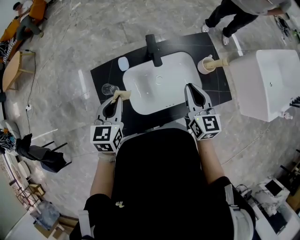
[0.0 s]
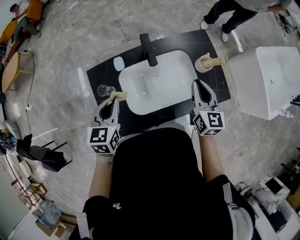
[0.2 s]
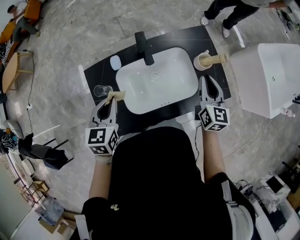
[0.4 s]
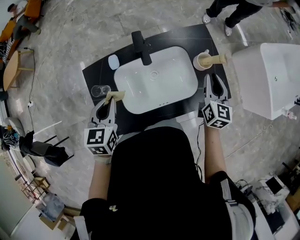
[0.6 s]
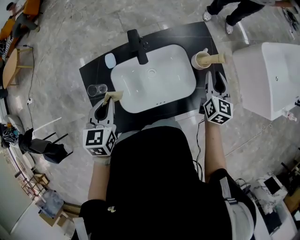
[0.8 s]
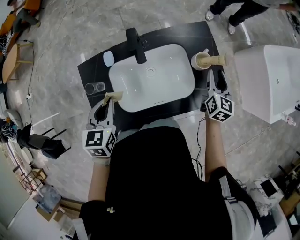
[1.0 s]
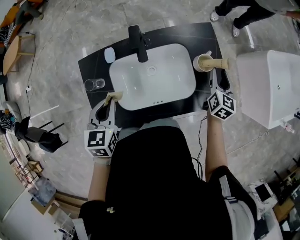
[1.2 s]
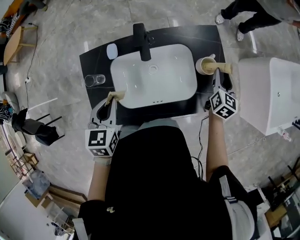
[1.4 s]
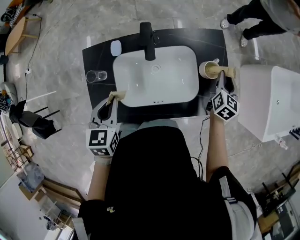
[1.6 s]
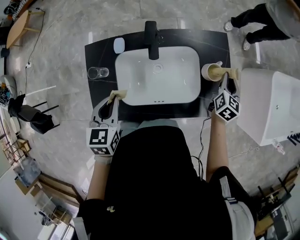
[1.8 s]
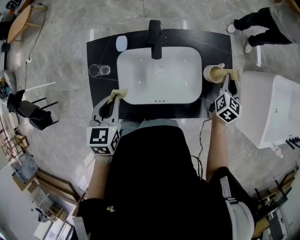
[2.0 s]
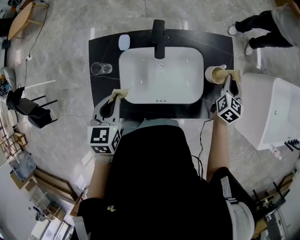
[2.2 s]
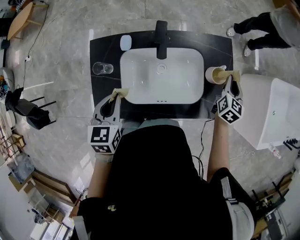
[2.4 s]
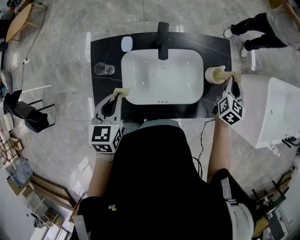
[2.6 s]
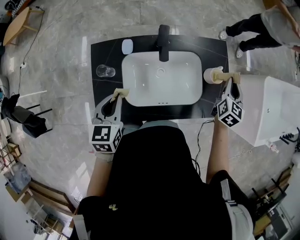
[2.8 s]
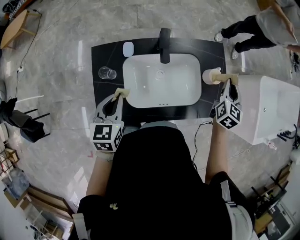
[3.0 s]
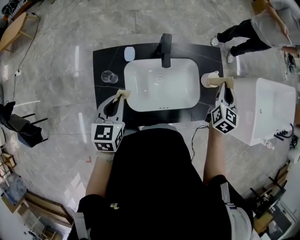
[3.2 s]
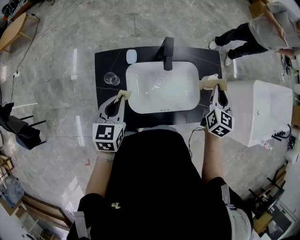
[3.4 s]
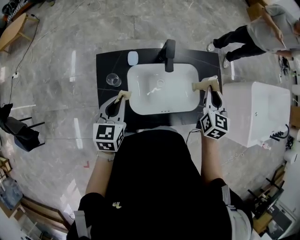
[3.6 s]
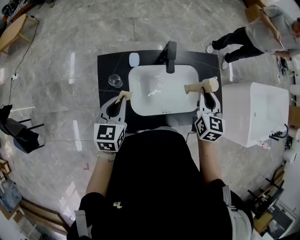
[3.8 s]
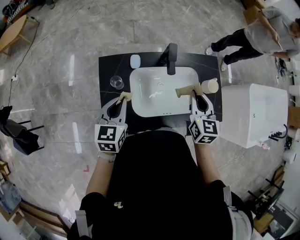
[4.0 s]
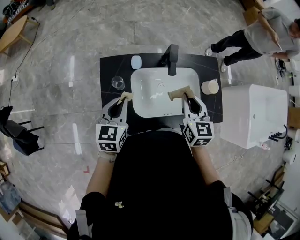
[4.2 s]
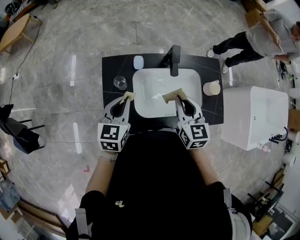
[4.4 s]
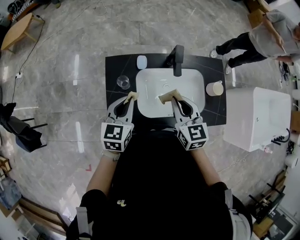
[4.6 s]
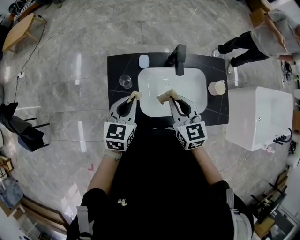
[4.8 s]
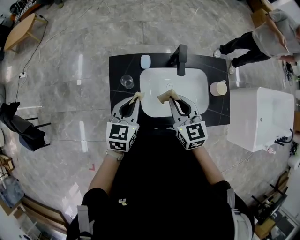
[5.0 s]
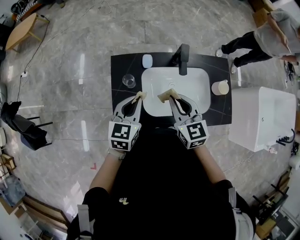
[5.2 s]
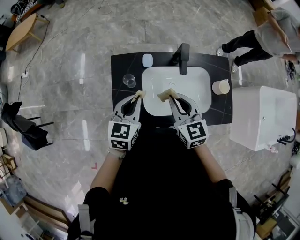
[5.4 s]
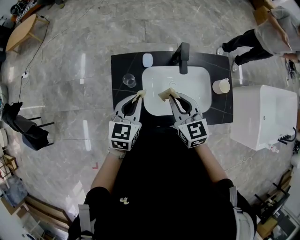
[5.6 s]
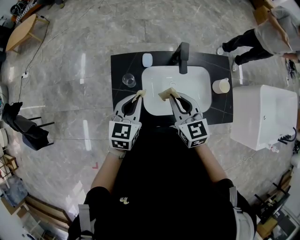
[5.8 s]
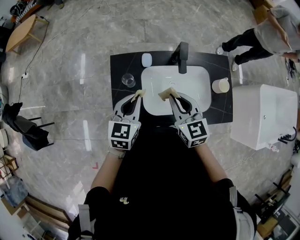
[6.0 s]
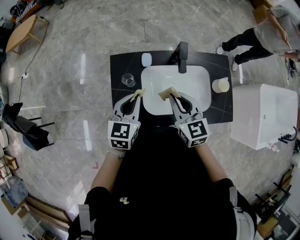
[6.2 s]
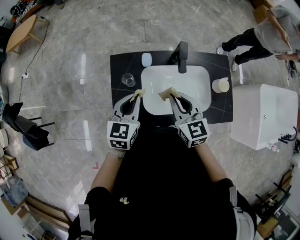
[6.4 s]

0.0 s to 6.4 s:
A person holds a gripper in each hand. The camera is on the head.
0.0 to 1.6 s: The right gripper goes some 30 cm to the right, forward and downward, and swivels some 20 degrees; the left gripper moves to the right, about 5 cm.
1.6 to 3.2 s: The left gripper heads to the left, covering some 5 cm. The right gripper is displaced upward and to the left by some 15 cm.
3.2 to 4.8 s: The right gripper goes roughly 30 cm to the left, and changes its angle by approximately 40 degrees.
4.8 to 6.4 s: The grippers move only a little.

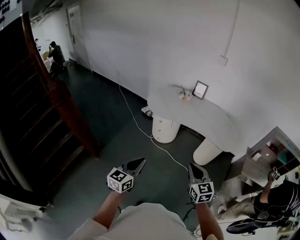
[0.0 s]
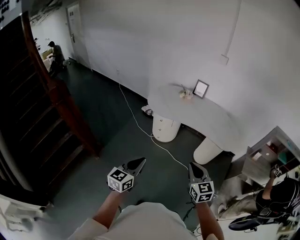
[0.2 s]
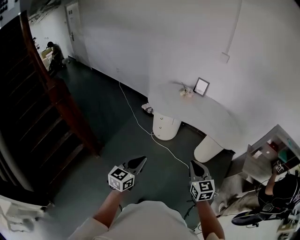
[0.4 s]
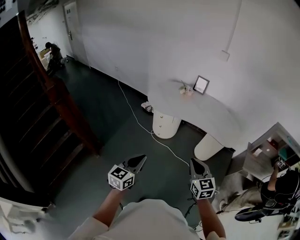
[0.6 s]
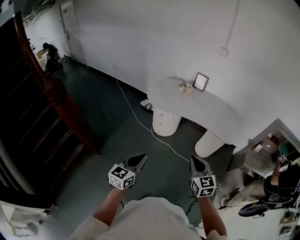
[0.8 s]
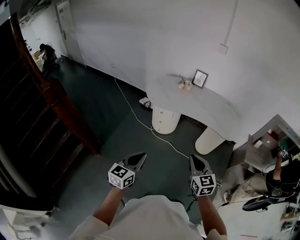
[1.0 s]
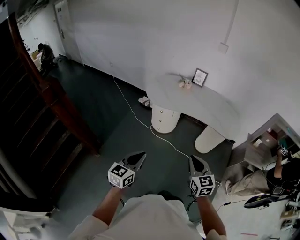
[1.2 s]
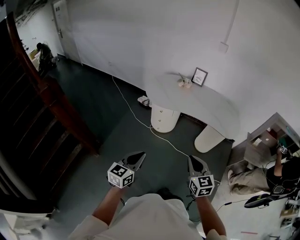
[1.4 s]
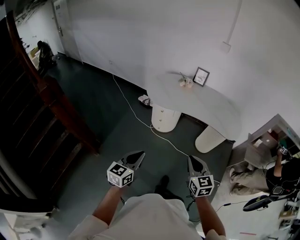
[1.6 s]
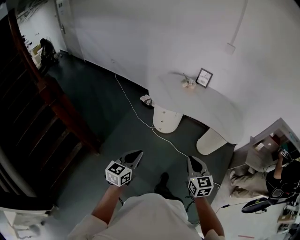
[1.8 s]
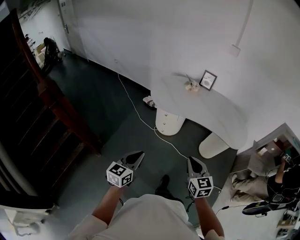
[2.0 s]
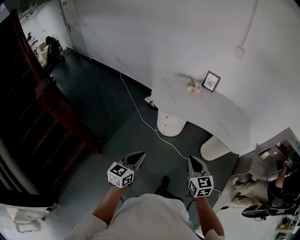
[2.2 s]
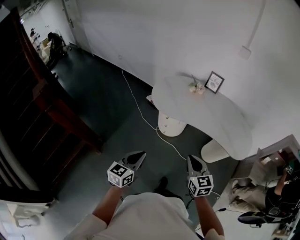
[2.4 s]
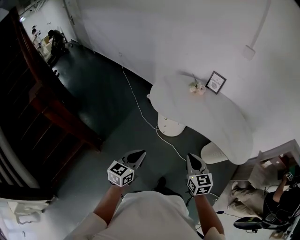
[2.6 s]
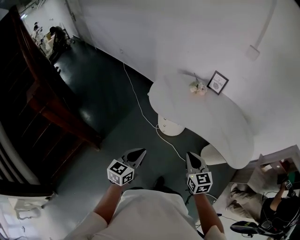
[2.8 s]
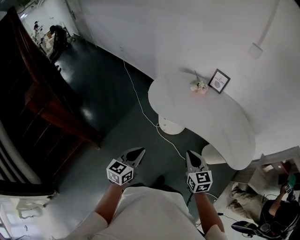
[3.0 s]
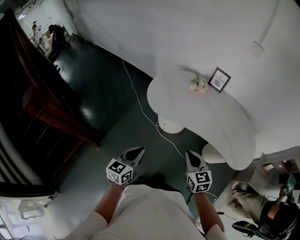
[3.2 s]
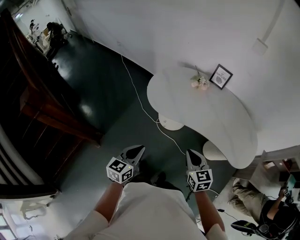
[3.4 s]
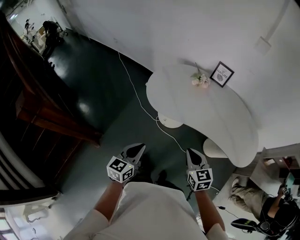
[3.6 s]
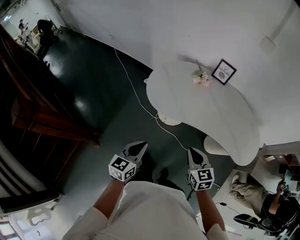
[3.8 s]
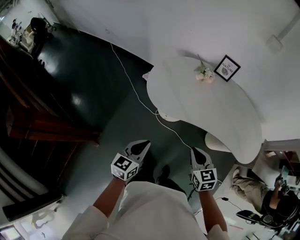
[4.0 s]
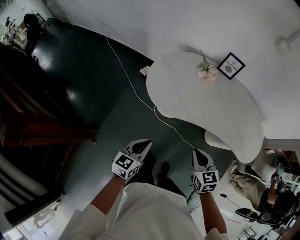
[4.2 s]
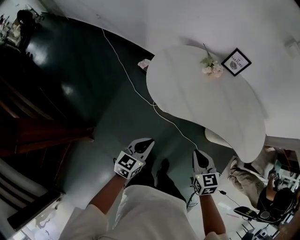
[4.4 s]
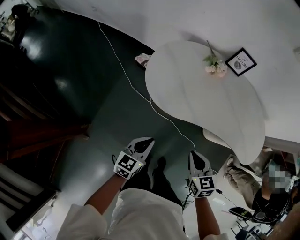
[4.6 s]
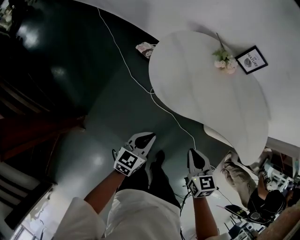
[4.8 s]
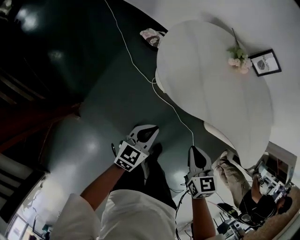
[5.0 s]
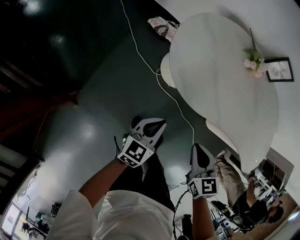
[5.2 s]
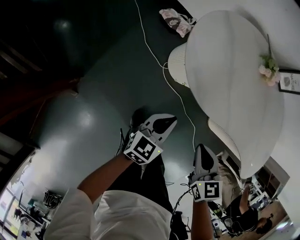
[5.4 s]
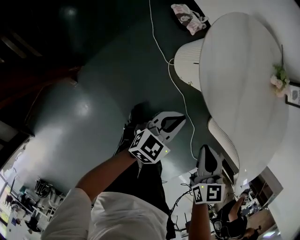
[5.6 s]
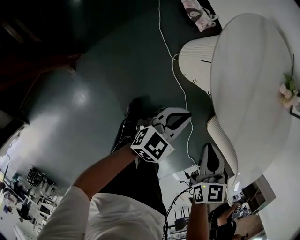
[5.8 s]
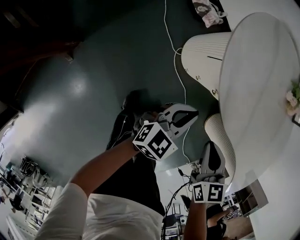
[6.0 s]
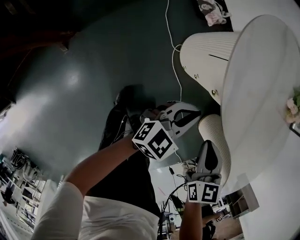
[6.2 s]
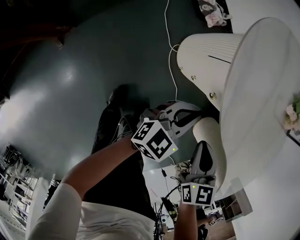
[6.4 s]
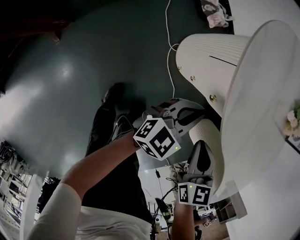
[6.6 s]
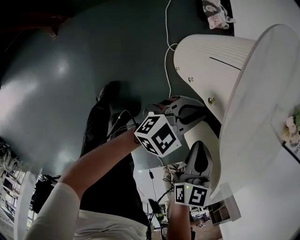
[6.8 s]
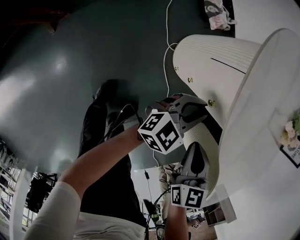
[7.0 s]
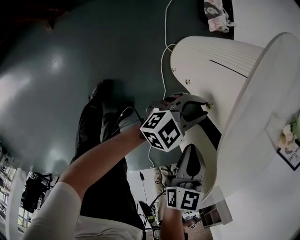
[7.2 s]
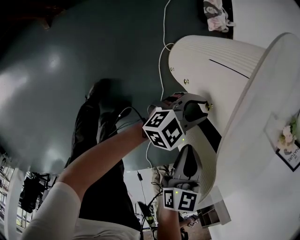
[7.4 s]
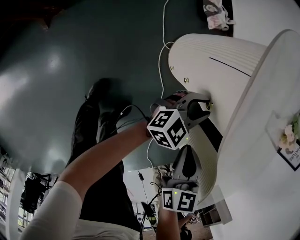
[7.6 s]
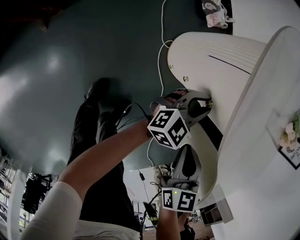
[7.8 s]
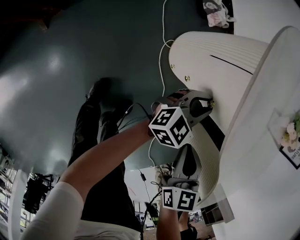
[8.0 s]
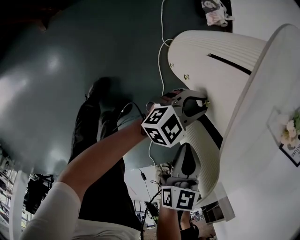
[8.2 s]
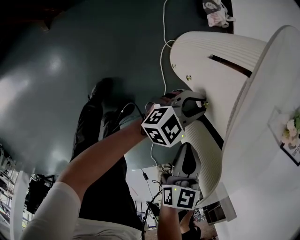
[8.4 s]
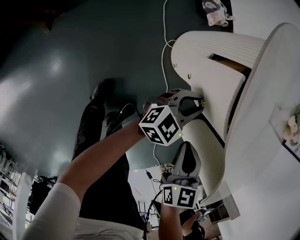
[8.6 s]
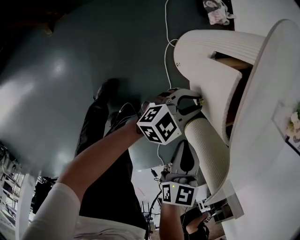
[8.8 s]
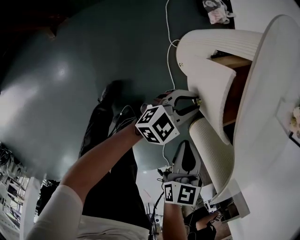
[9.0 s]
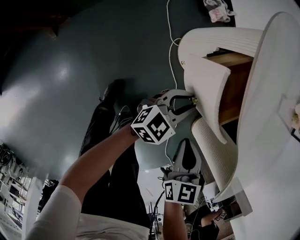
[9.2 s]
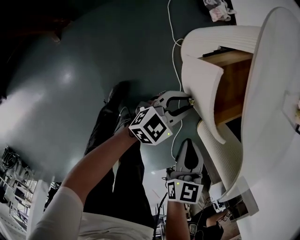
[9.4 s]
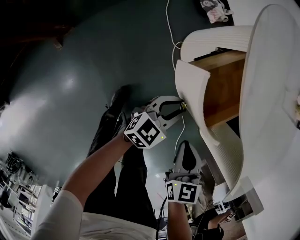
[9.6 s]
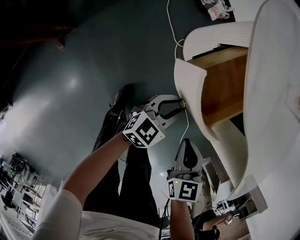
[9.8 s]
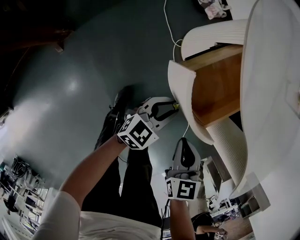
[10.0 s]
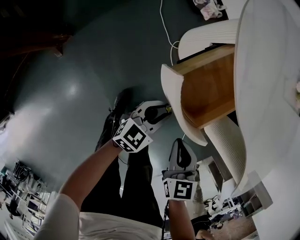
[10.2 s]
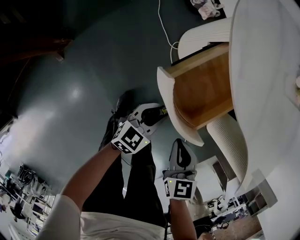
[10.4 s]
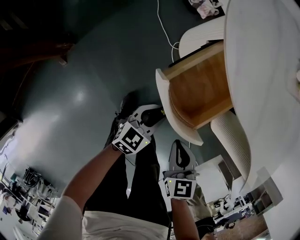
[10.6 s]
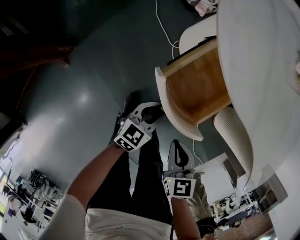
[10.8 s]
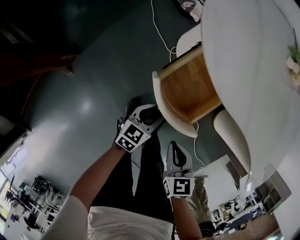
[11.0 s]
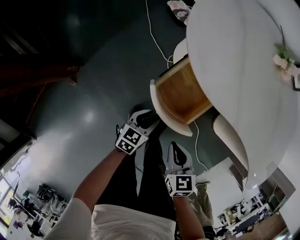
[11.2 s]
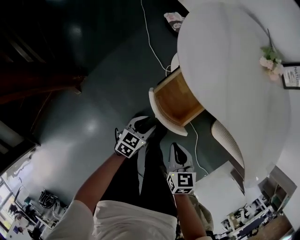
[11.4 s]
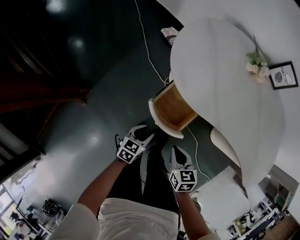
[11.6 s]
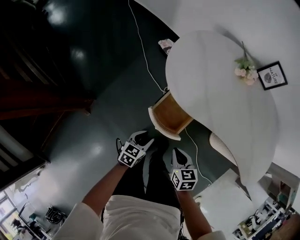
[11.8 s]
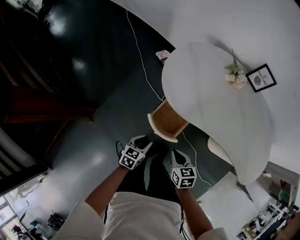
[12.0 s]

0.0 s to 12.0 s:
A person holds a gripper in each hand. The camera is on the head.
0.0 to 1.6 s: The two grippers go some 10 cm to the left.
1.6 to 3.0 s: Both grippers move forward, some 30 cm.
3.0 to 4.4 s: The left gripper travels forward and downward by approximately 25 cm. The right gripper heads forward, downward and to the left, covering some 20 cm, and swivels some 20 degrees.
4.4 to 6.0 s: The right gripper goes some 25 cm downward and to the left. The left gripper is displaced downward by about 30 cm.
6.0 to 7.6 s: The right gripper heads downward, covering some 10 cm. Meanwhile the left gripper shifts some 20 cm downward, to the right and forward, and opens.
7.6 to 9.0 s: The grippers both shift backward by roughly 5 cm.
9.0 to 10.4 s: The left gripper travels backward and to the left by approximately 15 cm; the right gripper moves backward, some 5 cm.
10.4 to 12.0 s: Both grippers move upward, about 20 cm. The right gripper swivels approximately 20 degrees.

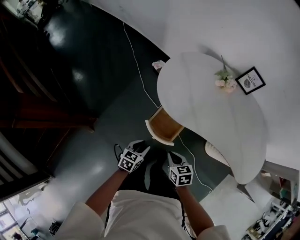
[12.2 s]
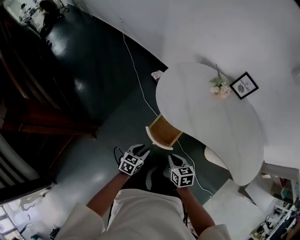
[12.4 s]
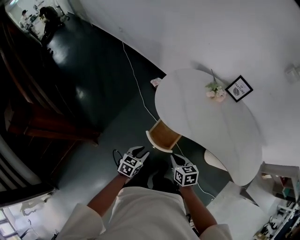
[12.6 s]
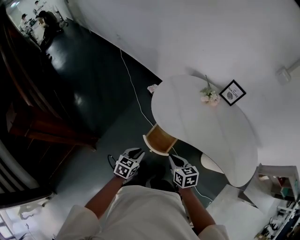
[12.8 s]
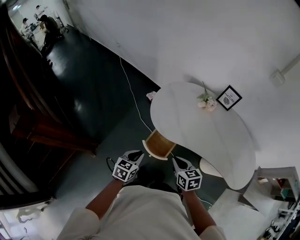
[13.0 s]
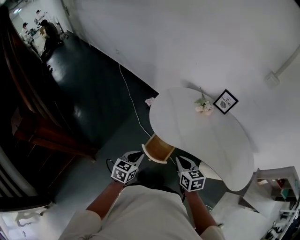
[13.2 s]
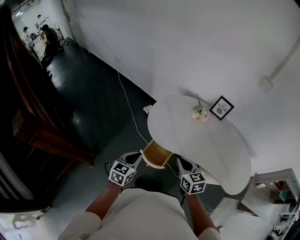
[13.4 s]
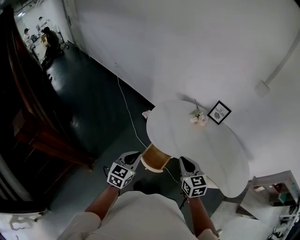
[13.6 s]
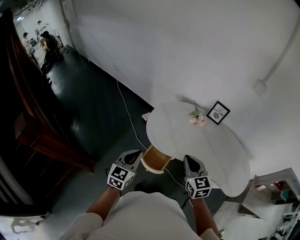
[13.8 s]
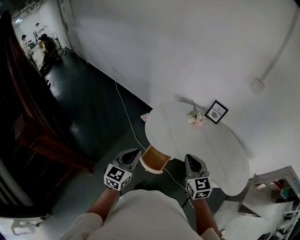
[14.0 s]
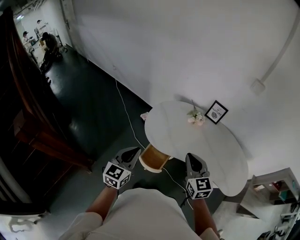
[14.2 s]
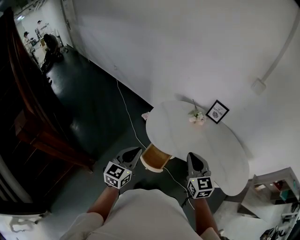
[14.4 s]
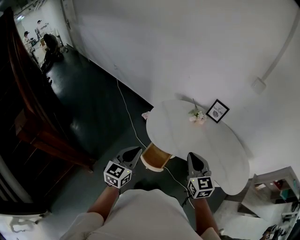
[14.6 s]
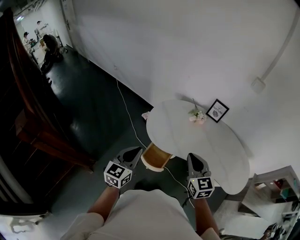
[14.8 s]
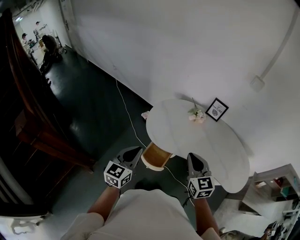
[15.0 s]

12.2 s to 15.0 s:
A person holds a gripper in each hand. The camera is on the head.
12.2 to 13.6 s: Both grippers travel together upward, about 30 cm. The left gripper swivels about 30 degrees, and closes; the right gripper changes its angle by about 30 degrees.
13.6 to 15.0 s: The grippers both shift upward by approximately 5 cm.

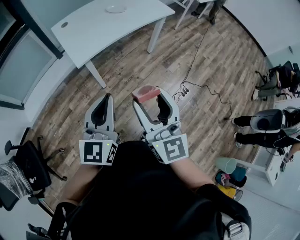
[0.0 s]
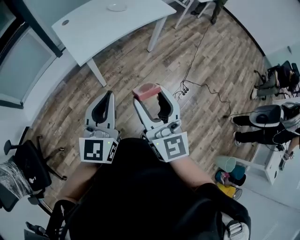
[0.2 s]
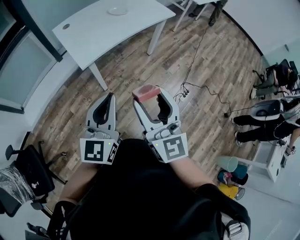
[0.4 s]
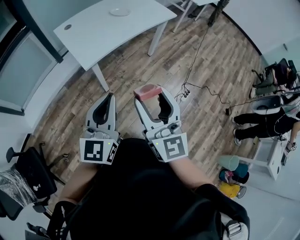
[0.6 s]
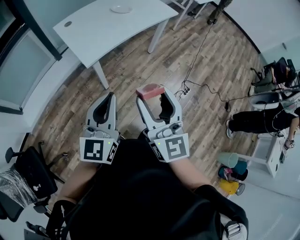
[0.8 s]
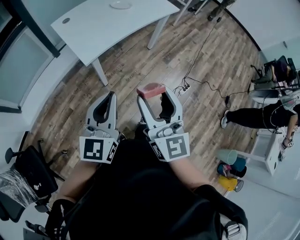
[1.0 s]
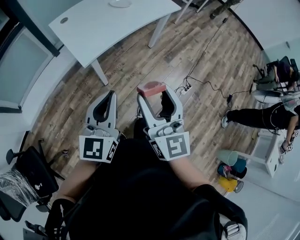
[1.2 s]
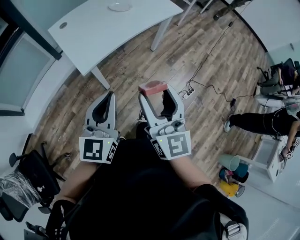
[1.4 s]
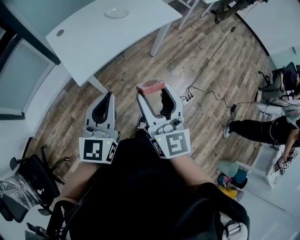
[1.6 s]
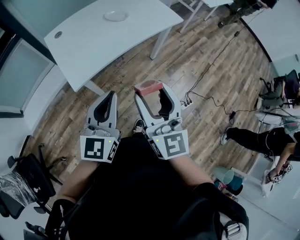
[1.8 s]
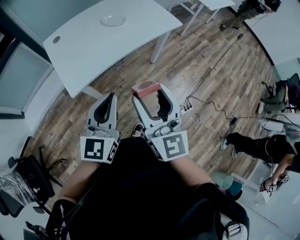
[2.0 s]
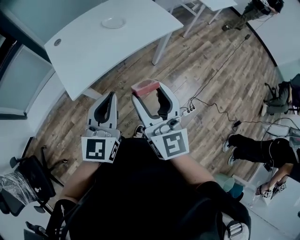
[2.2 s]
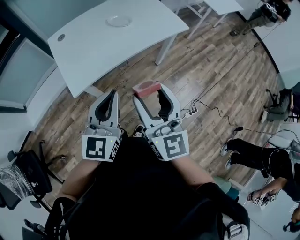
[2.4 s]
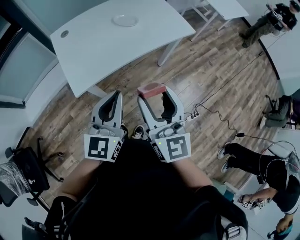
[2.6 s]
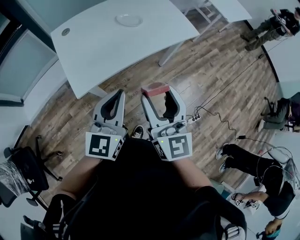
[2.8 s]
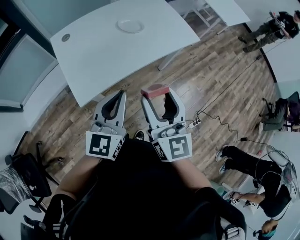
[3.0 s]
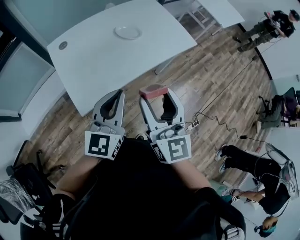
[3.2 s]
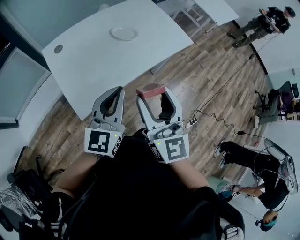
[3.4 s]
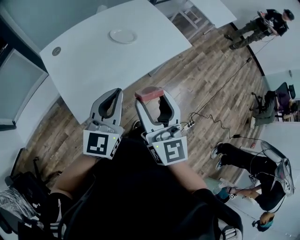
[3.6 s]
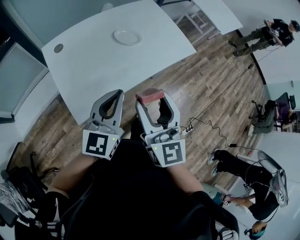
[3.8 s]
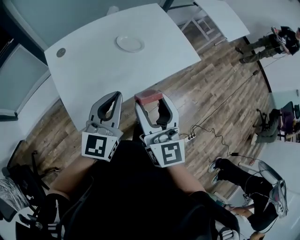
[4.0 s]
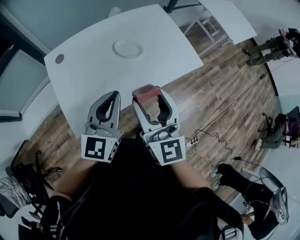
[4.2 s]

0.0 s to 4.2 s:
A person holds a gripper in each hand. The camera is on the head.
0.0 to 1.4 s: The left gripper goes about 10 cm forward and to the left. Meanwhile the right gripper is displaced forward by roughly 10 cm.
1.4 to 2.8 s: The two grippers go some 20 cm forward.
2.8 to 4.2 s: The grippers both shift forward by roughly 20 cm.
